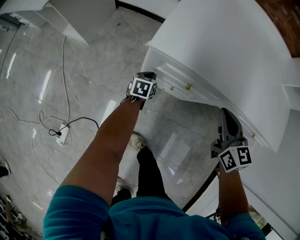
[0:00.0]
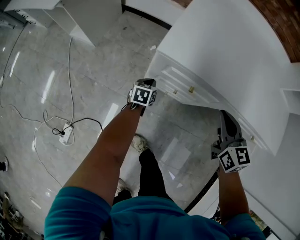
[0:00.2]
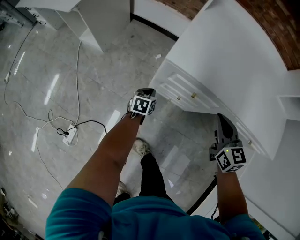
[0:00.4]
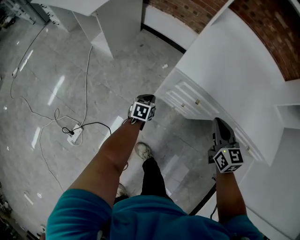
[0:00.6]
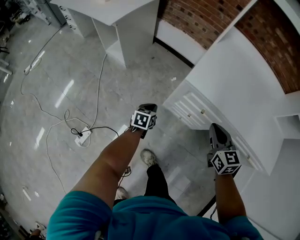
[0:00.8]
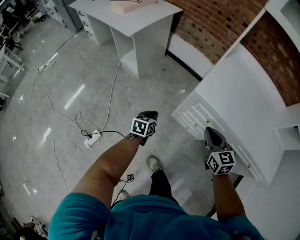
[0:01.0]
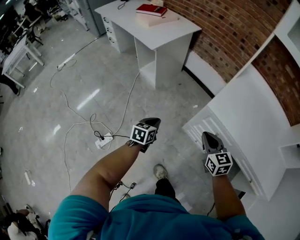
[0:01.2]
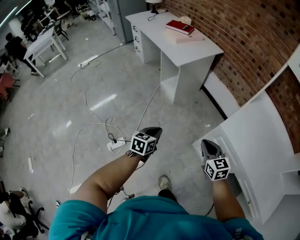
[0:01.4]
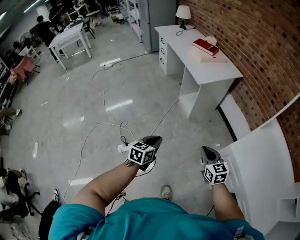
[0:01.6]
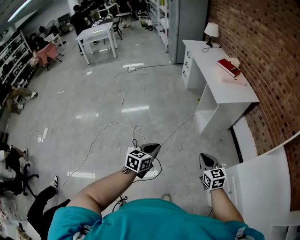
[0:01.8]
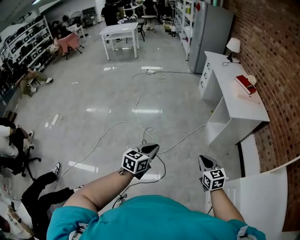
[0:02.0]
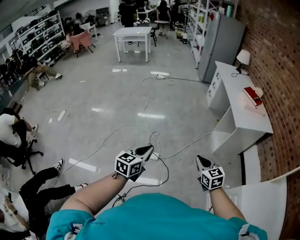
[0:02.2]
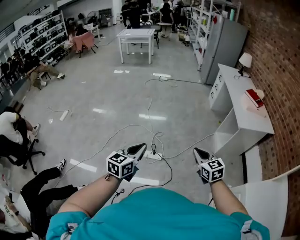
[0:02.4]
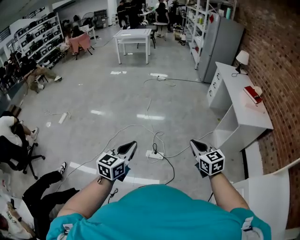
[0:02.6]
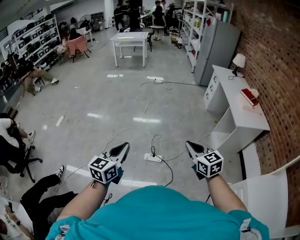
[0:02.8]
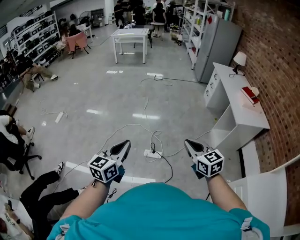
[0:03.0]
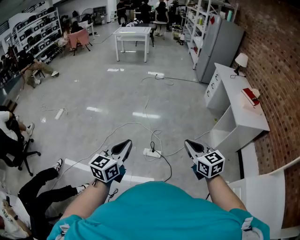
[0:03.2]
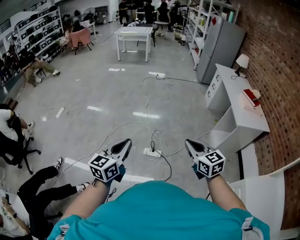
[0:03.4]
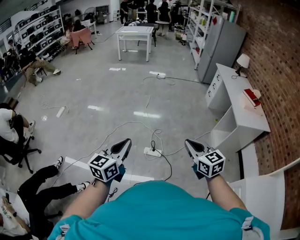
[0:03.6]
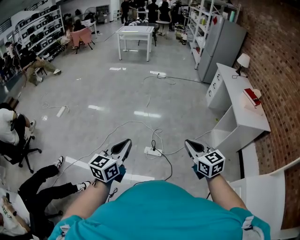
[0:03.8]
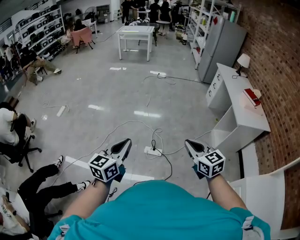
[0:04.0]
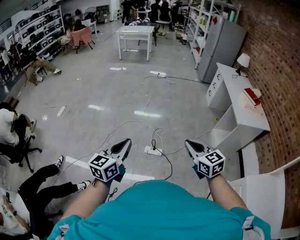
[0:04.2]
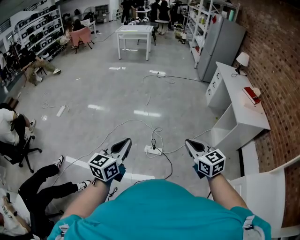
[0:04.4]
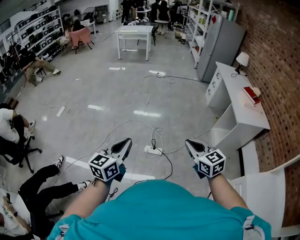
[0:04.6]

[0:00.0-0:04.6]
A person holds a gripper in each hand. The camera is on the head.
0:00.0 to 0:01.6: Both grippers are carried some 40 cm. The right gripper changes its angle by roughly 50 degrees. The left gripper swivels about 40 degrees.
0:01.6 to 0:03.0: Both grippers are carried roughly 40 cm. The left gripper swivels approximately 40 degrees. The right gripper rotates roughly 40 degrees.
0:03.0 to 0:04.6: The grippers make only small movements.

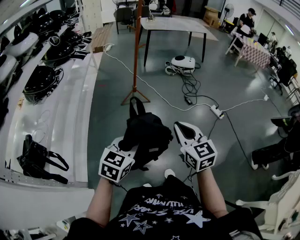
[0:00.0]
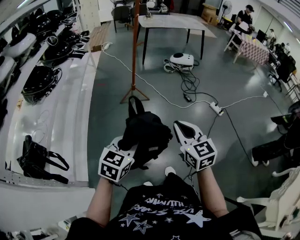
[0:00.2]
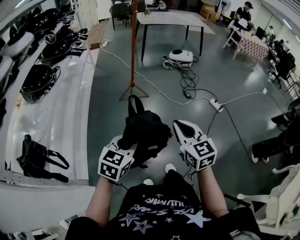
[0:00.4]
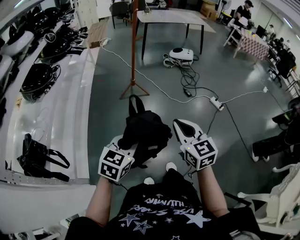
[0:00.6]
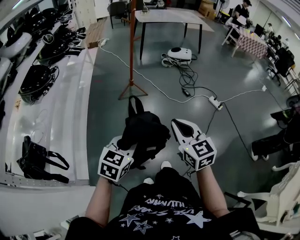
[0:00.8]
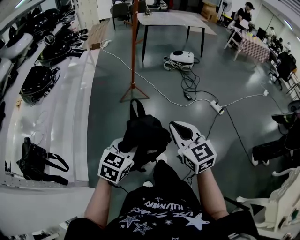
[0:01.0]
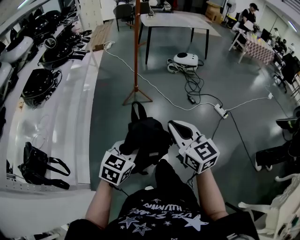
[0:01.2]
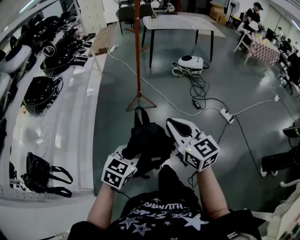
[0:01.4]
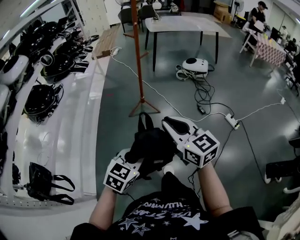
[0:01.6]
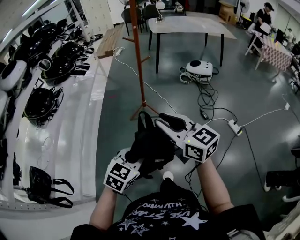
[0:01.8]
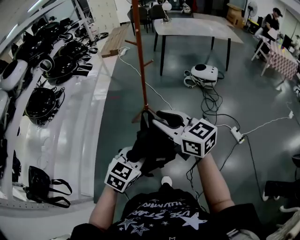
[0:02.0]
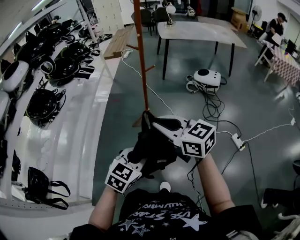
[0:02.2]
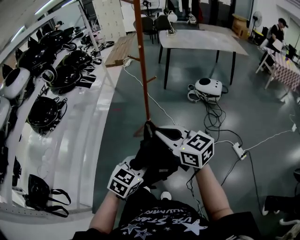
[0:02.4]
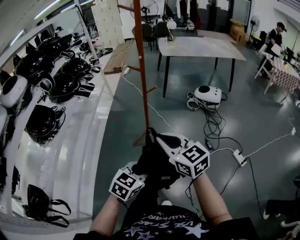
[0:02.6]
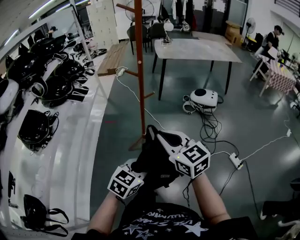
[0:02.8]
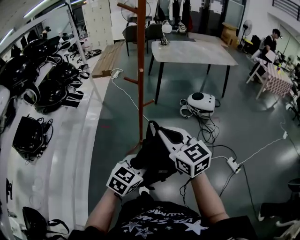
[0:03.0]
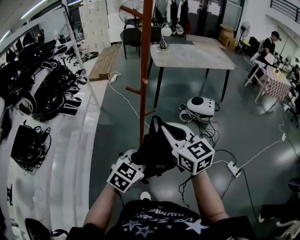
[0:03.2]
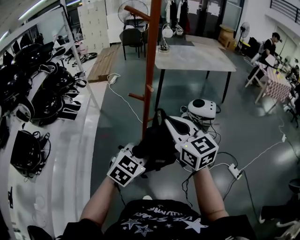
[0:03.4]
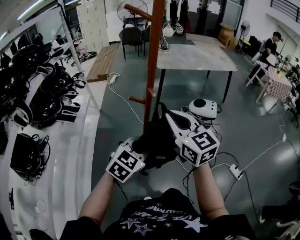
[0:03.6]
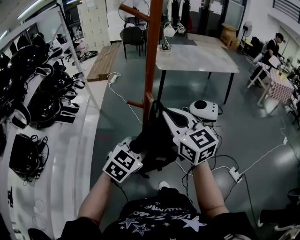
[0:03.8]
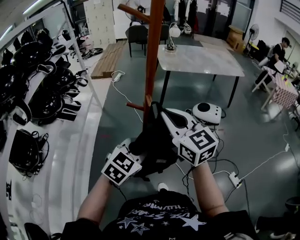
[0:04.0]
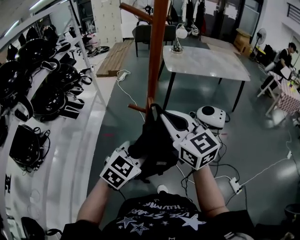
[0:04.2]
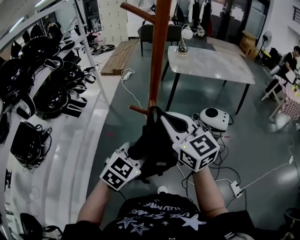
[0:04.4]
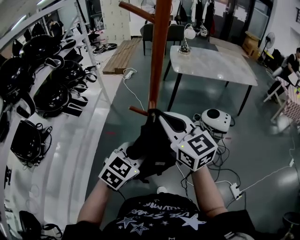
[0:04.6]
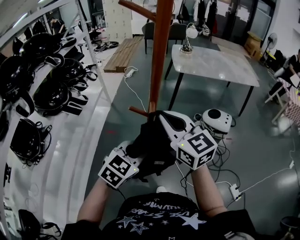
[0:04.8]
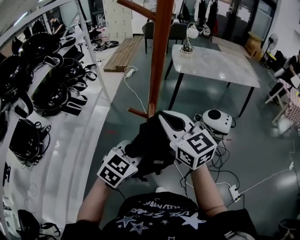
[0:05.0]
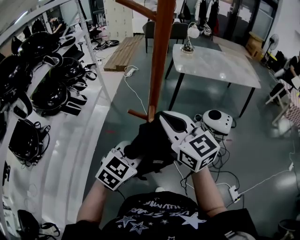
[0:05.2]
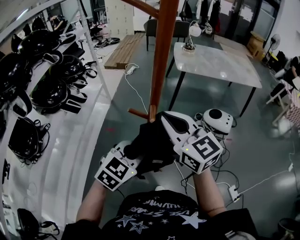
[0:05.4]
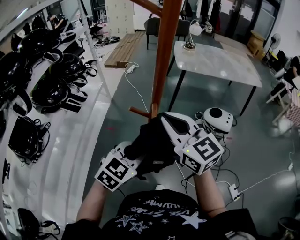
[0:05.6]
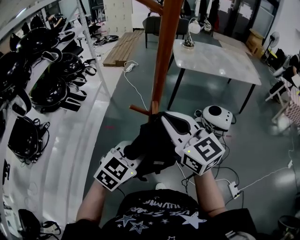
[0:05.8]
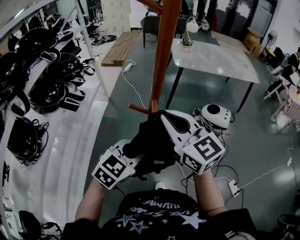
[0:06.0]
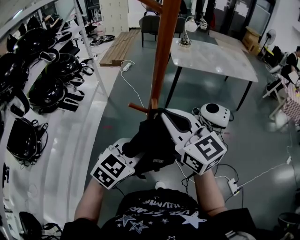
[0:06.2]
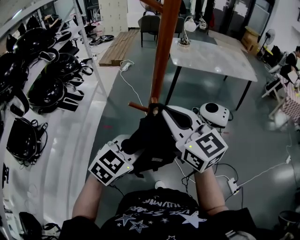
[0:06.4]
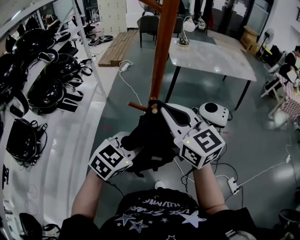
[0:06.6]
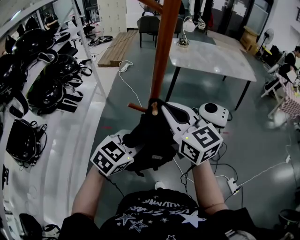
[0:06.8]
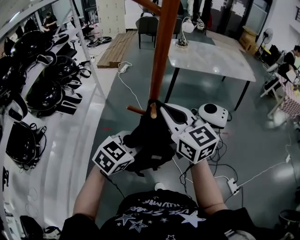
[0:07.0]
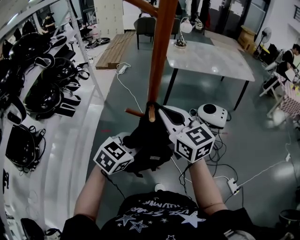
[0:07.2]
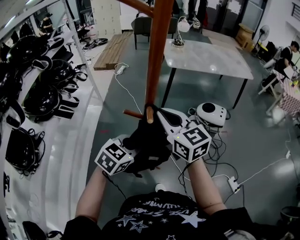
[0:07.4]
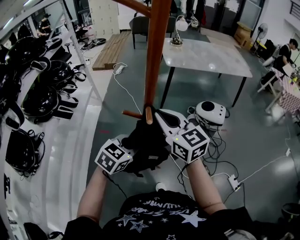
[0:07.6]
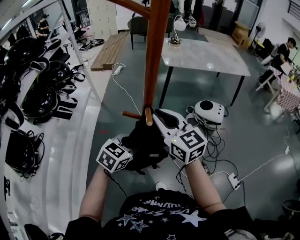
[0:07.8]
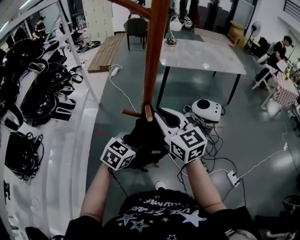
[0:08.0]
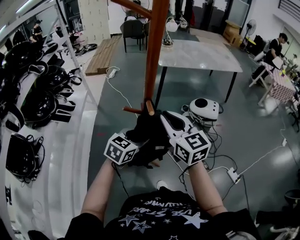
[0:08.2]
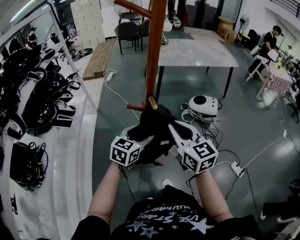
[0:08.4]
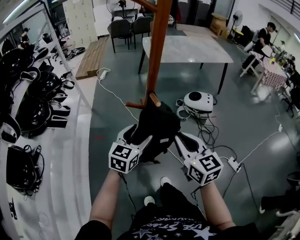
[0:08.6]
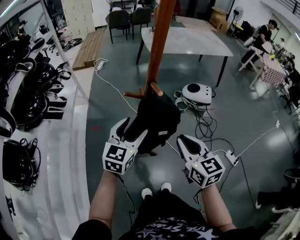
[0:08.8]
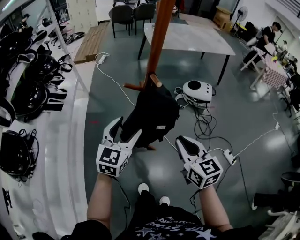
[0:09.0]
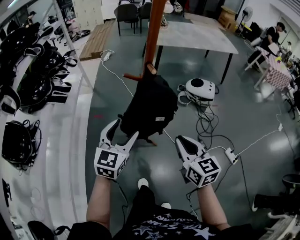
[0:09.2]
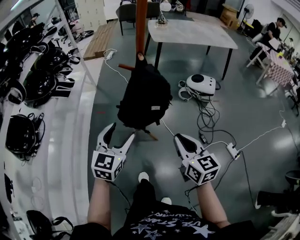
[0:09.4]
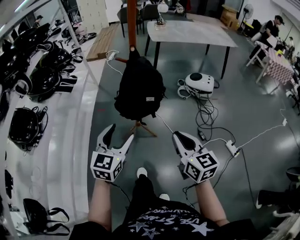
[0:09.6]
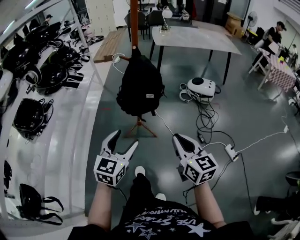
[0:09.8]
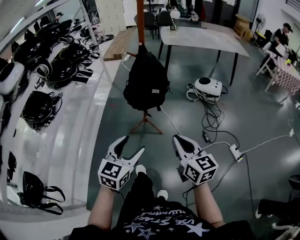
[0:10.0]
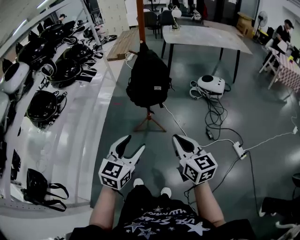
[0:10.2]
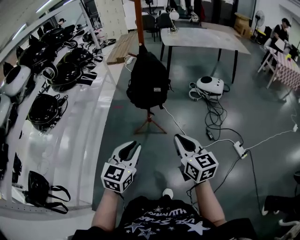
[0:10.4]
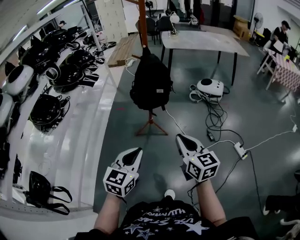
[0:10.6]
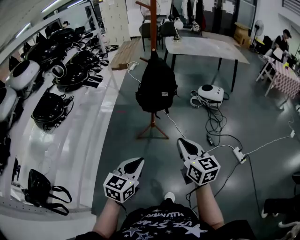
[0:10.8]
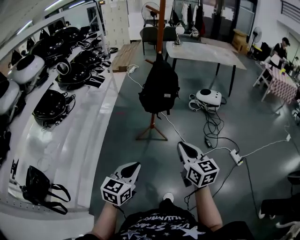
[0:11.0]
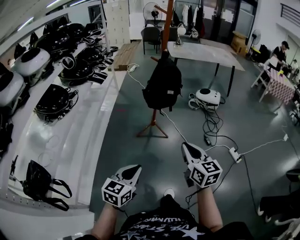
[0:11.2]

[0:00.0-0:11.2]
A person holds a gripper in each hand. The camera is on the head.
0:00.0 to 0:01.6: Both grippers move forward, approximately 20 cm. The right gripper turns by some 20 degrees.
0:01.6 to 0:03.2: Both grippers are carried forward, about 50 cm. The right gripper opens and closes again.
0:03.2 to 0:04.8: Both grippers move forward, approximately 20 cm.
0:04.8 to 0:06.4: The grippers make only small movements.
0:06.4 to 0:08.0: The right gripper shifts roughly 5 cm downward. The left gripper moves downward and forward, about 10 cm.
0:08.0 to 0:09.6: The right gripper shifts about 40 cm backward and to the right. The left gripper goes approximately 30 cm backward, turns by some 30 degrees, and opens.
0:09.6 to 0:11.2: Both grippers travel together backward, approximately 35 cm. The left gripper closes.

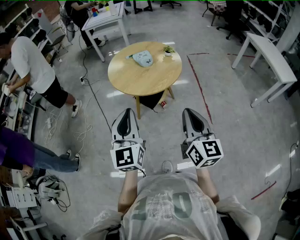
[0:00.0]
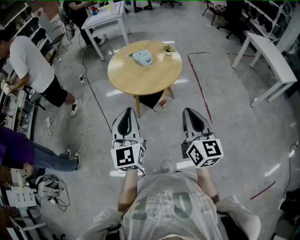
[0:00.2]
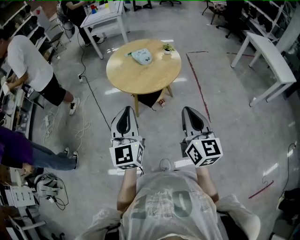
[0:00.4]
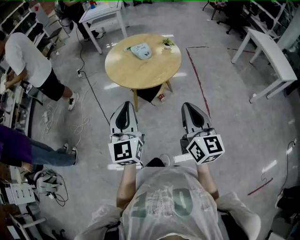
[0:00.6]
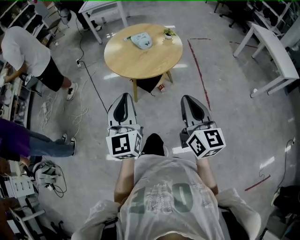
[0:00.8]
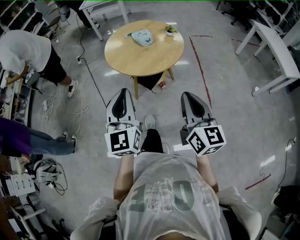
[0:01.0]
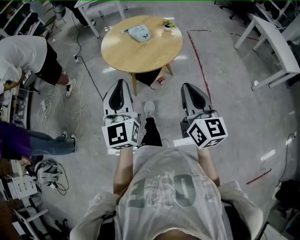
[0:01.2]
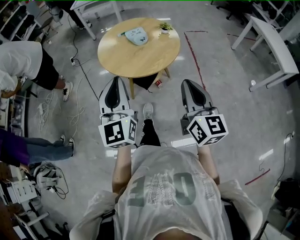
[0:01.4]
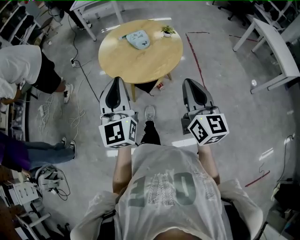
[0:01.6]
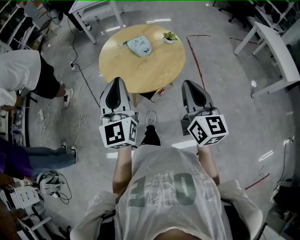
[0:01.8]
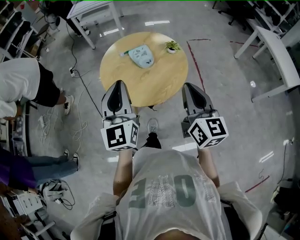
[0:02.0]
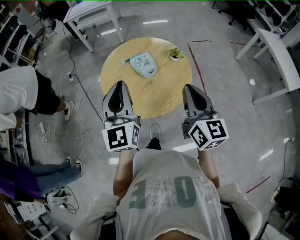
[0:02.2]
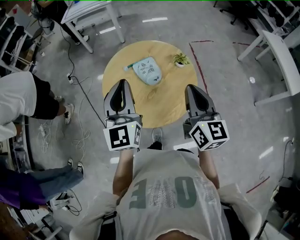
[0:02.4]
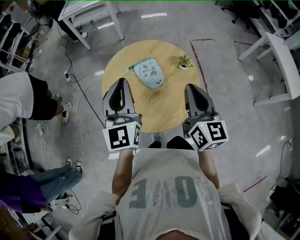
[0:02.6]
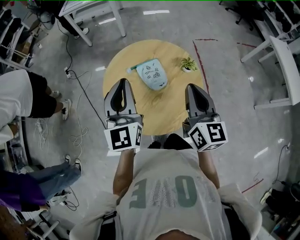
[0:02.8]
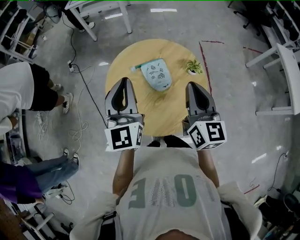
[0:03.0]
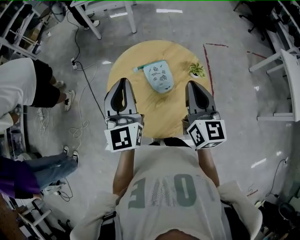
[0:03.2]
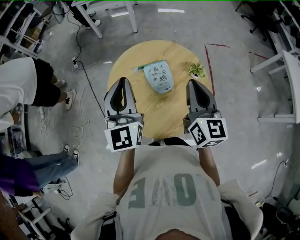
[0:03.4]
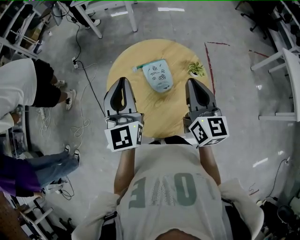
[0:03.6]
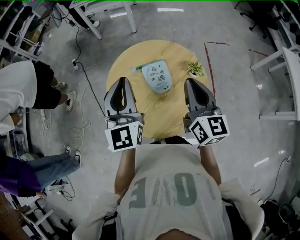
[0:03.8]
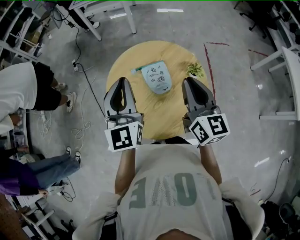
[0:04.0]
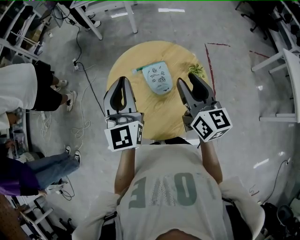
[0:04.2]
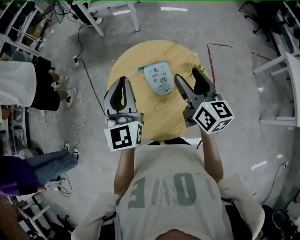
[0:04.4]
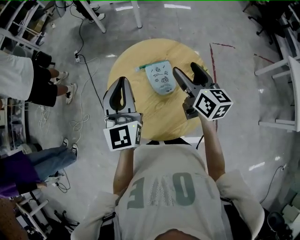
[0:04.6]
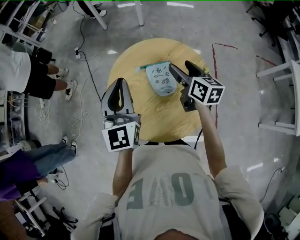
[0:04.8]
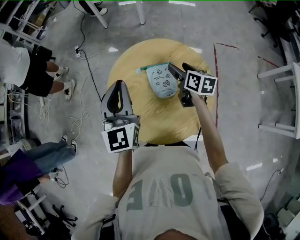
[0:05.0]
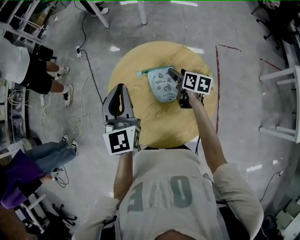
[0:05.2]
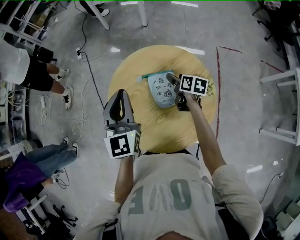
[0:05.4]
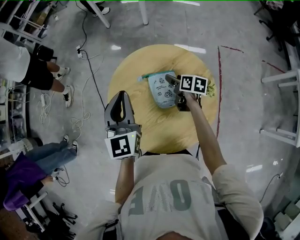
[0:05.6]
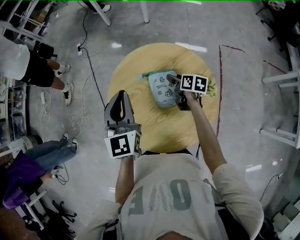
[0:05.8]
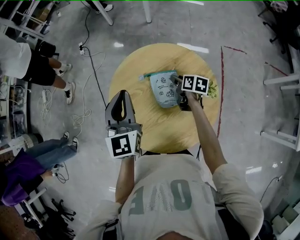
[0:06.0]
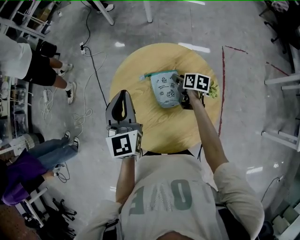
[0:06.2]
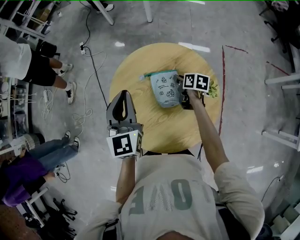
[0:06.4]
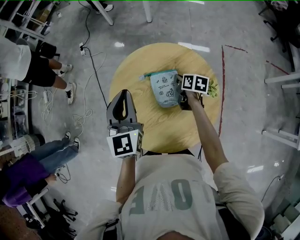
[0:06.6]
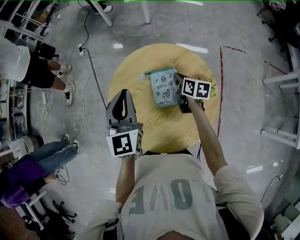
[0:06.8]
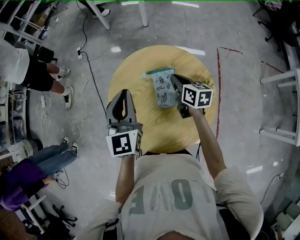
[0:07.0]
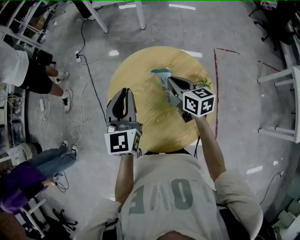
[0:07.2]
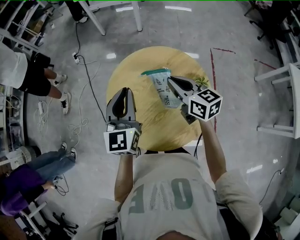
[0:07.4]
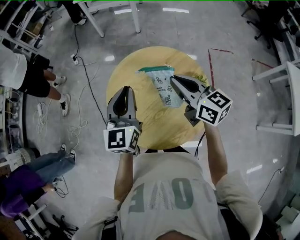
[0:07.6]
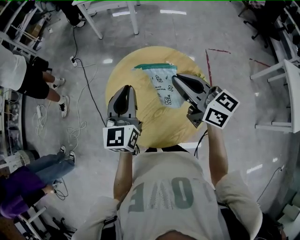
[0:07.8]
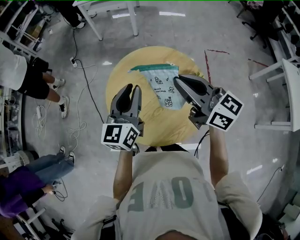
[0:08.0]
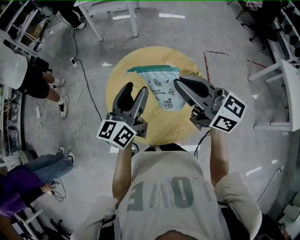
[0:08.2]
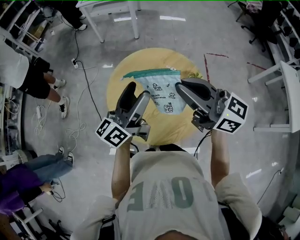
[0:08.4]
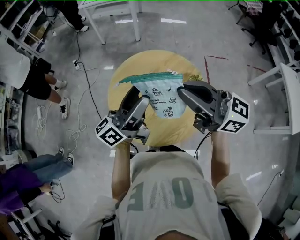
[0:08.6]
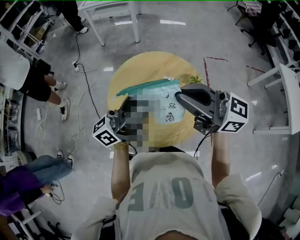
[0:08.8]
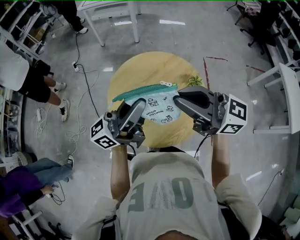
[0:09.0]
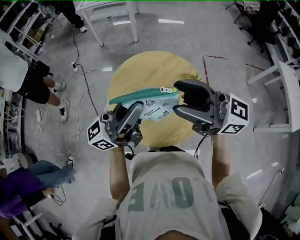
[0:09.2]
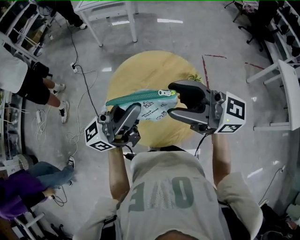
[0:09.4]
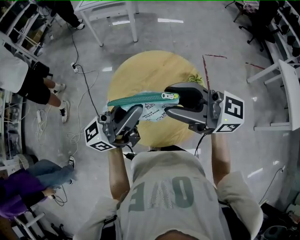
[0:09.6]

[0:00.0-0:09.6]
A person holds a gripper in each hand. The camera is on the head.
0:00.0 to 0:01.6: Both grippers move forward, roughly 10 cm.
0:01.6 to 0:03.2: The two grippers go approximately 35 cm forward.
0:03.2 to 0:04.8: The right gripper goes approximately 20 cm forward and downward, changes its angle by approximately 30 degrees, and opens up.
0:04.8 to 0:06.4: The left gripper shifts roughly 5 cm downward; the right gripper heads downward, covering some 20 cm, changes its angle by approximately 30 degrees, and closes up.
0:06.4 to 0:08.0: The right gripper shifts roughly 35 cm upward, and angles its fingers upward, by about 50 degrees, while the left gripper shifts roughly 5 cm backward, and turns by about 30 degrees.
0:08.0 to 0:09.6: The right gripper ends up some 10 cm from where it was, swivels roughly 30 degrees, and opens up. Meanwhile the left gripper shifts about 10 cm upward, tilts its fingers roughly 30 degrees upward, and opens, then closes once more.
